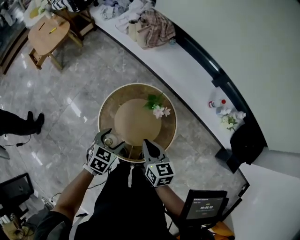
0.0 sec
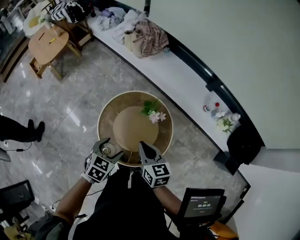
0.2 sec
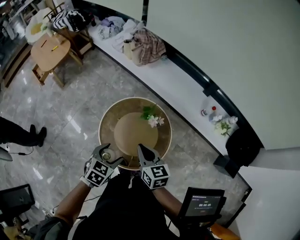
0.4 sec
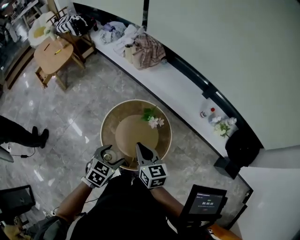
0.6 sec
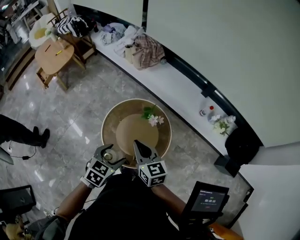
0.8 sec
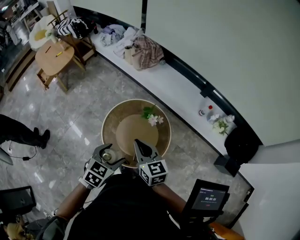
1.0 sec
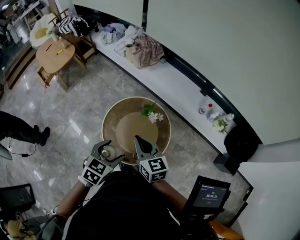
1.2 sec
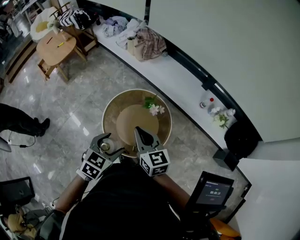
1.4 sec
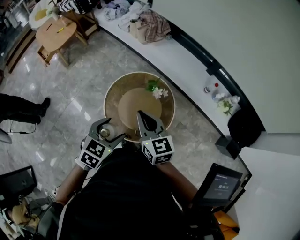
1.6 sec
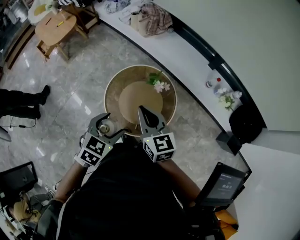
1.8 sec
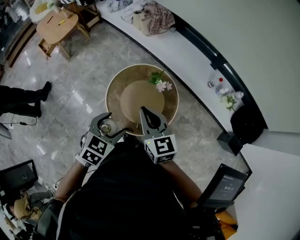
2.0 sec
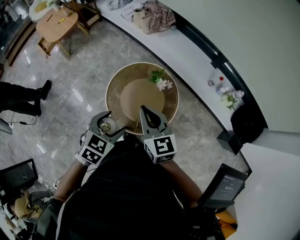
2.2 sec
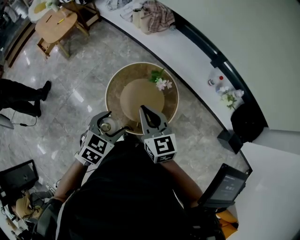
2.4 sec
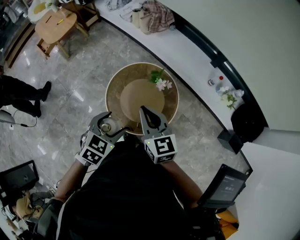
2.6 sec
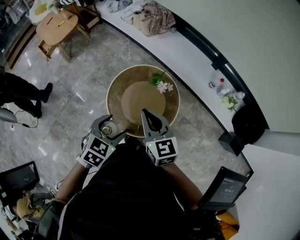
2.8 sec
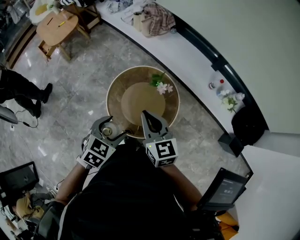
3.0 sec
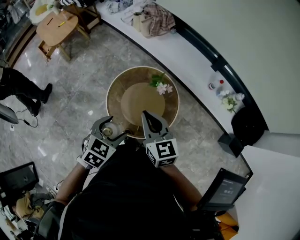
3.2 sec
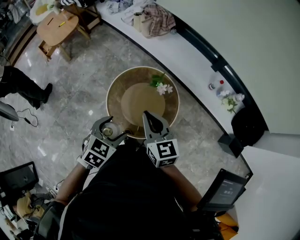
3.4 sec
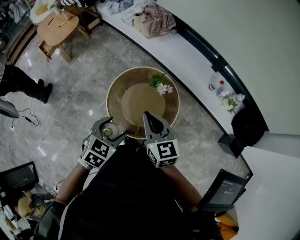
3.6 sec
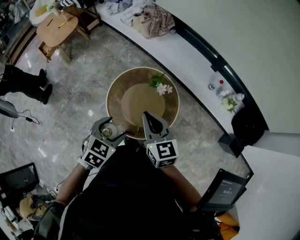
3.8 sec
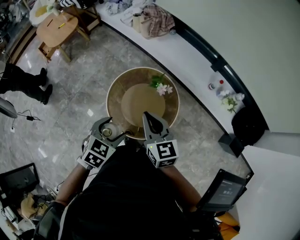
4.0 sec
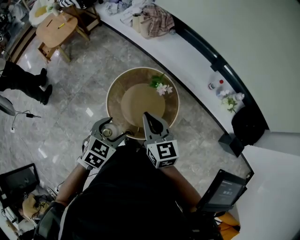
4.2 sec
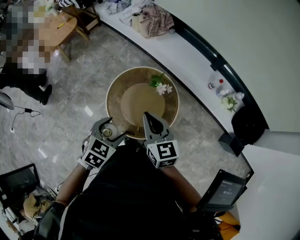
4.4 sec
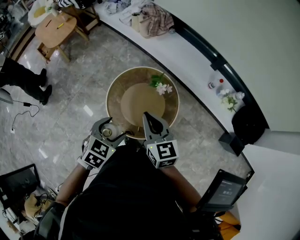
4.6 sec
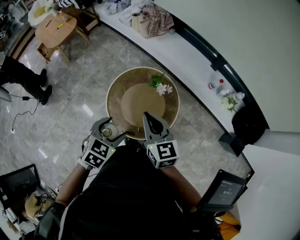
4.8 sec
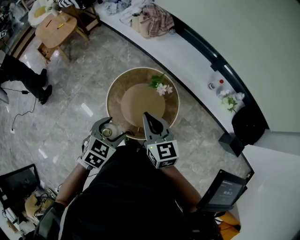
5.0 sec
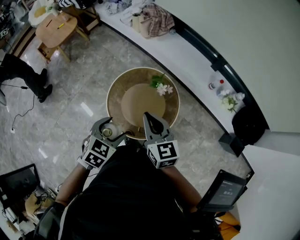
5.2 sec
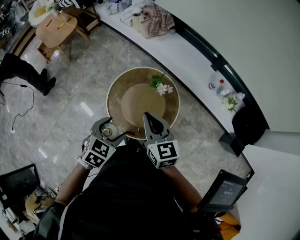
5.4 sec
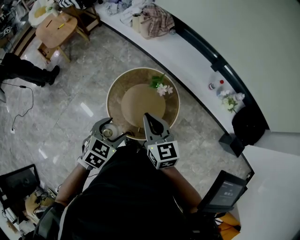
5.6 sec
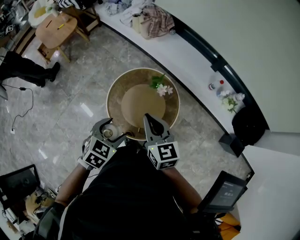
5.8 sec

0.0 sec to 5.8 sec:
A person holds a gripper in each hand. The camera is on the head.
0.0 sec to 1.4 sec: The right gripper heads upward, covering about 15 cm. The left gripper shifts some 20 cm upward and backward.
1.4 sec to 2.8 sec: There are only small adjustments of the grippers.
2.8 sec to 5.8 sec: Both grippers stay about where they are.

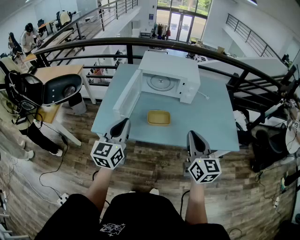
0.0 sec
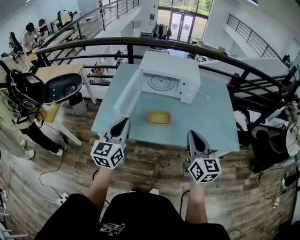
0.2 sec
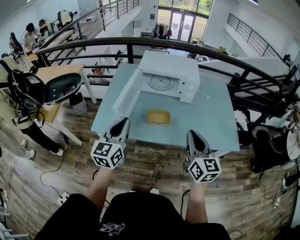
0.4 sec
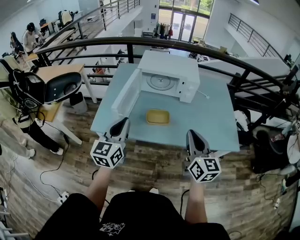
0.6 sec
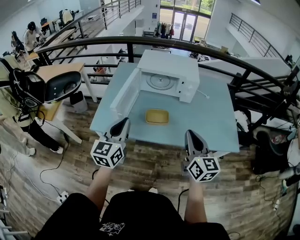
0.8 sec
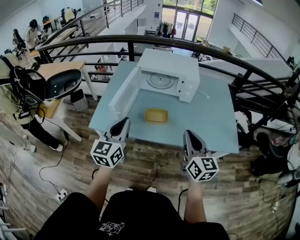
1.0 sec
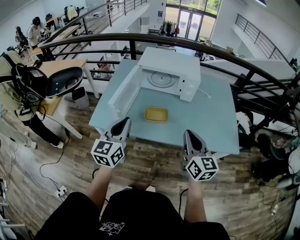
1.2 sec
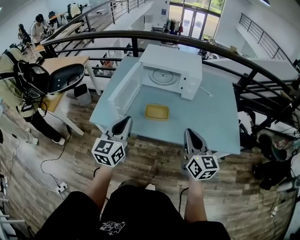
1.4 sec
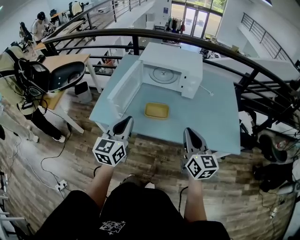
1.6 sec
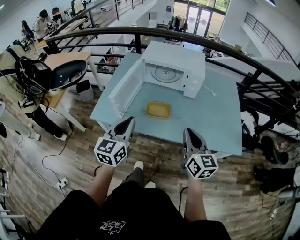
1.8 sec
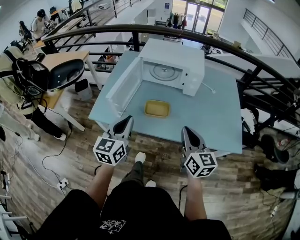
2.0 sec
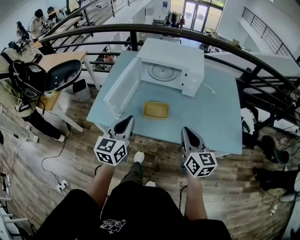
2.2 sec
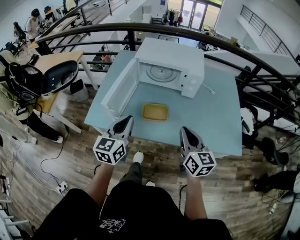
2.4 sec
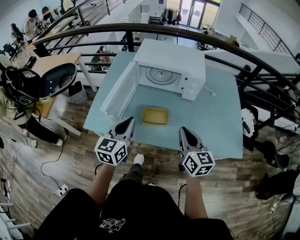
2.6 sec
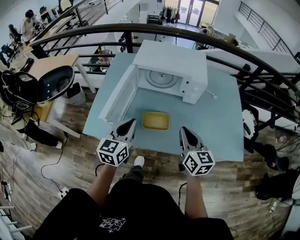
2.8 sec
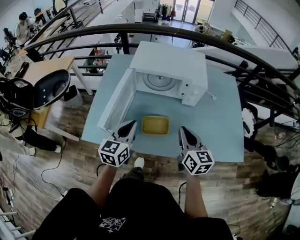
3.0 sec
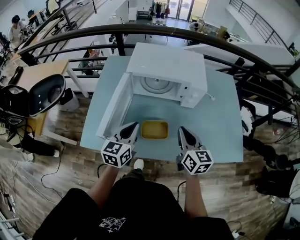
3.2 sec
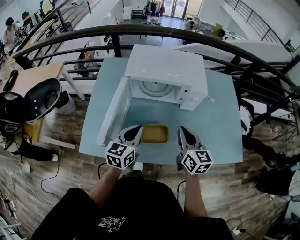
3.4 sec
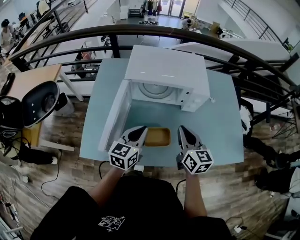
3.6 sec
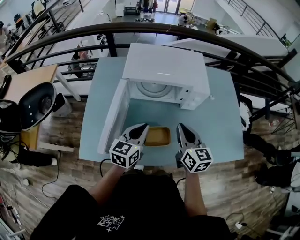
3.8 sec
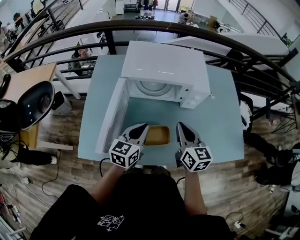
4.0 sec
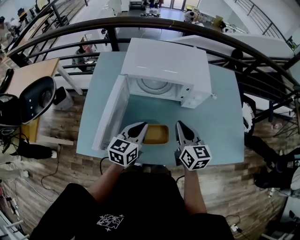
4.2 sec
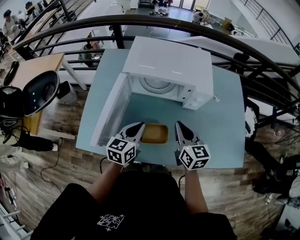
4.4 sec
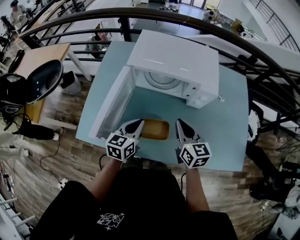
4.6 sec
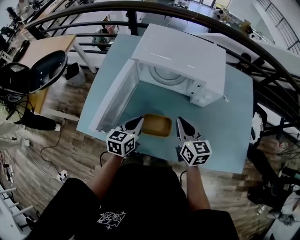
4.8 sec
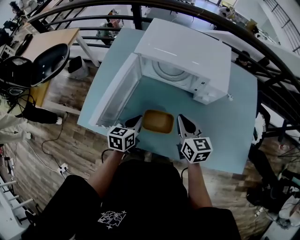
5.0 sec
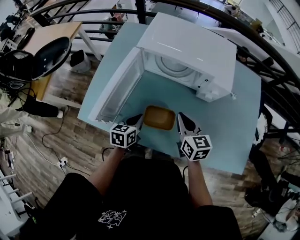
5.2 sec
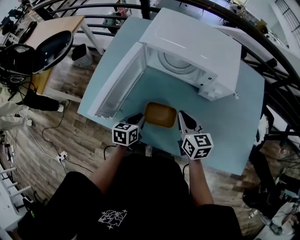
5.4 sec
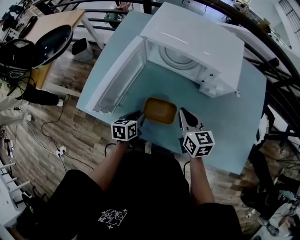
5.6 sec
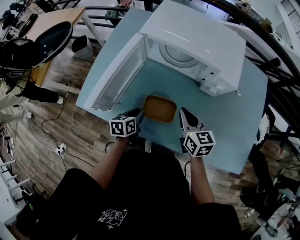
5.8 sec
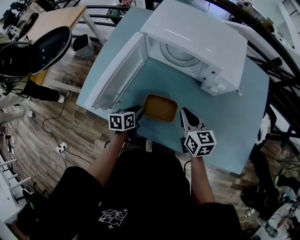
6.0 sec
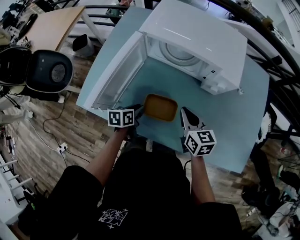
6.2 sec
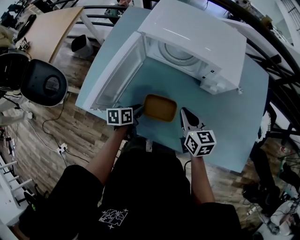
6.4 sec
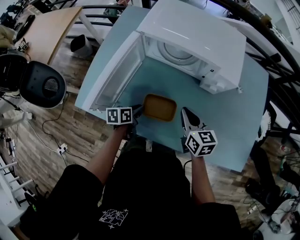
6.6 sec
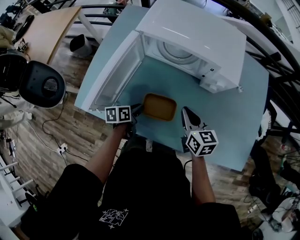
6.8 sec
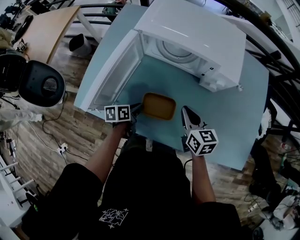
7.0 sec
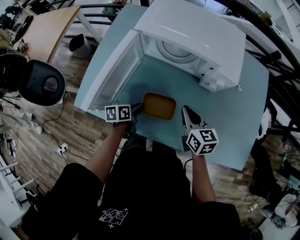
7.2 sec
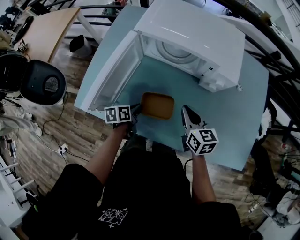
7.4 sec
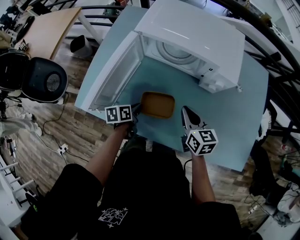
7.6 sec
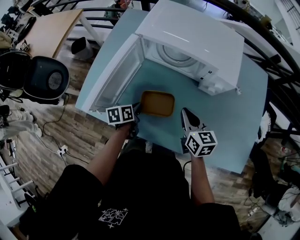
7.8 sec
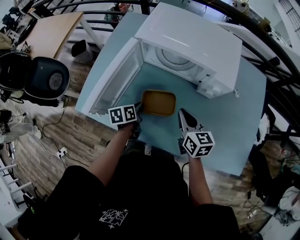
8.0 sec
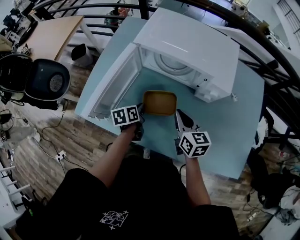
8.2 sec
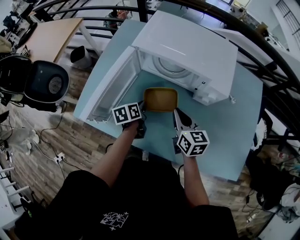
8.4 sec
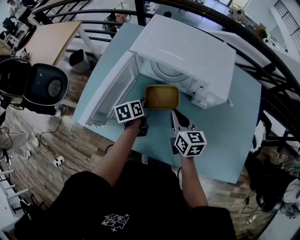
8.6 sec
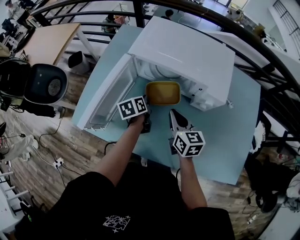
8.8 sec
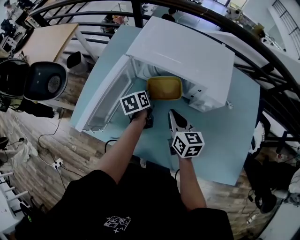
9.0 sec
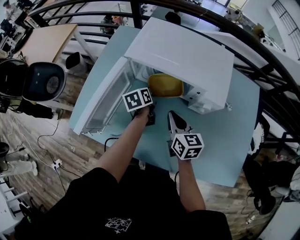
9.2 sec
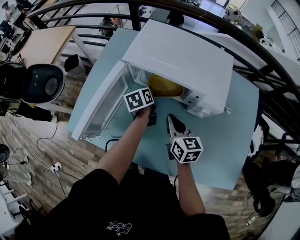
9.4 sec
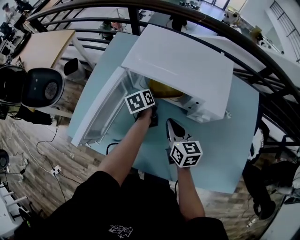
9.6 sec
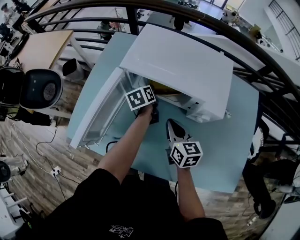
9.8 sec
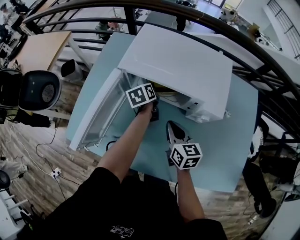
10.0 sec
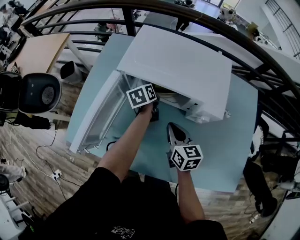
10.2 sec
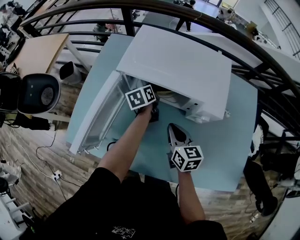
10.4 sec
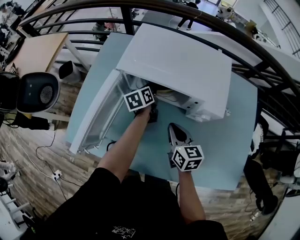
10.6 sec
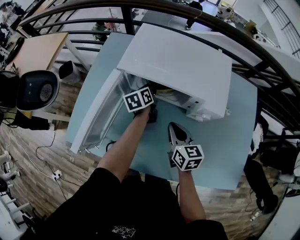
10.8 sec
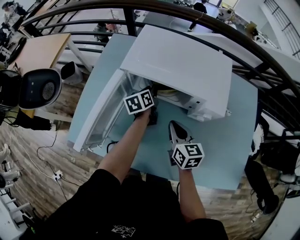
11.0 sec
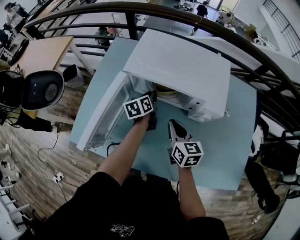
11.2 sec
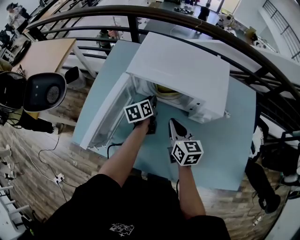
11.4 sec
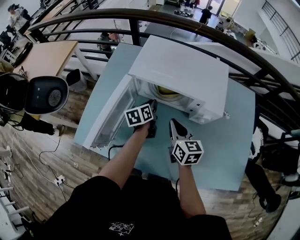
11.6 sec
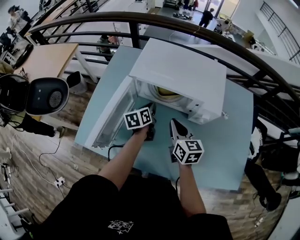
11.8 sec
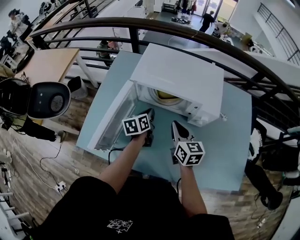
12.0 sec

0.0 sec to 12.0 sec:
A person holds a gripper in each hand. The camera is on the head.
0.0 sec to 1.6 sec: The left gripper heads to the right, covering about 5 cm. The right gripper changes place by roughly 5 cm.
1.6 sec to 3.0 sec: The right gripper heads forward, covering approximately 15 cm. Meanwhile the left gripper is displaced forward and downward by some 20 cm.
3.0 sec to 4.4 sec: The left gripper shifts approximately 10 cm forward and downward; the right gripper travels forward by some 10 cm.
4.4 sec to 6.0 sec: The right gripper shifts about 10 cm downward, and swivels some 20 degrees. The left gripper shifts about 20 cm downward, turns by some 40 degrees, and opens up.
6.0 sec to 7.6 sec: The grippers make only small movements.
7.6 sec to 9.0 sec: The right gripper shifts approximately 5 cm forward; the left gripper shifts about 15 cm forward.
9.0 sec to 10.4 sec: The left gripper travels forward and to the right by approximately 10 cm.
10.4 sec to 12.0 sec: The right gripper is displaced upward by about 5 cm. Meanwhile the left gripper goes roughly 10 cm backward.

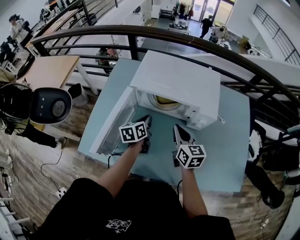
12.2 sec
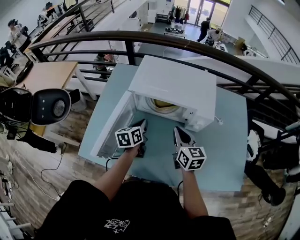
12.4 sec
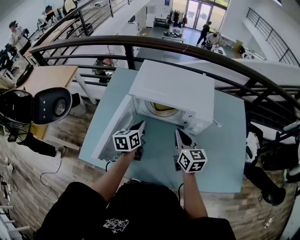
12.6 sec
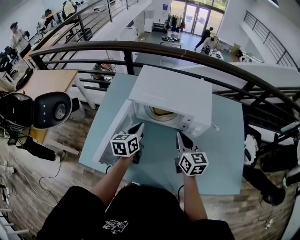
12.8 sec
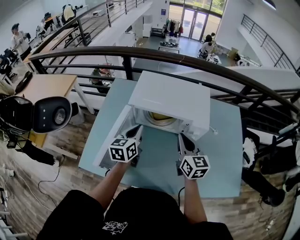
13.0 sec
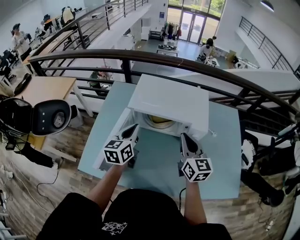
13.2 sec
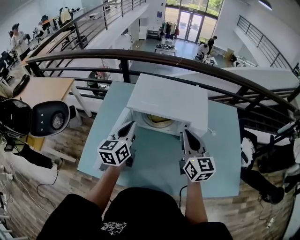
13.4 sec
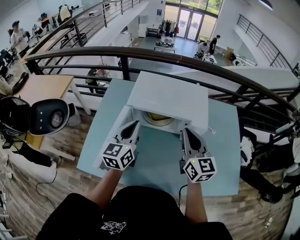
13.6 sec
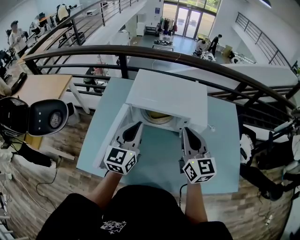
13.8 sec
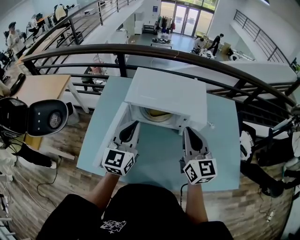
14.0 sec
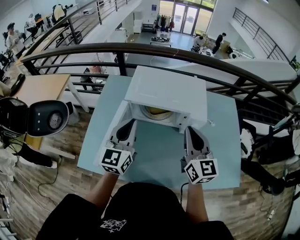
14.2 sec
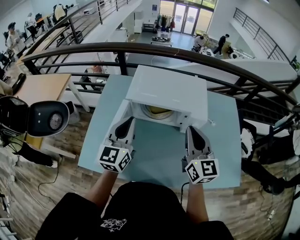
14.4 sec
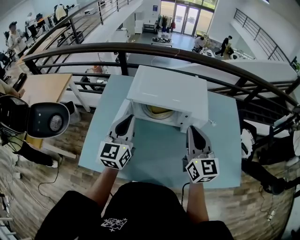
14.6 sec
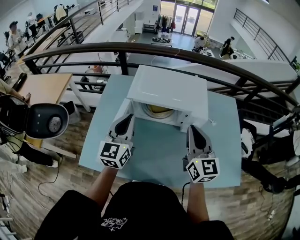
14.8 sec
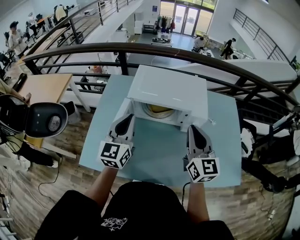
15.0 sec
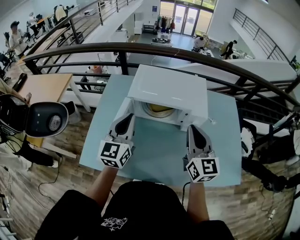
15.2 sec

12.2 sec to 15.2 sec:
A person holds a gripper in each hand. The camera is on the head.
12.2 sec to 13.8 sec: Both grippers move upward, approximately 20 cm. The right gripper turns by some 20 degrees. The left gripper swivels roughly 40 degrees.
13.8 sec to 15.2 sec: There are only small adjustments of the grippers.

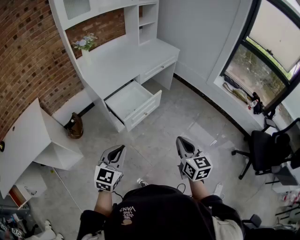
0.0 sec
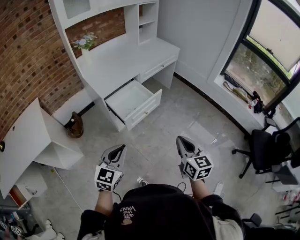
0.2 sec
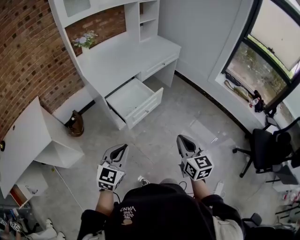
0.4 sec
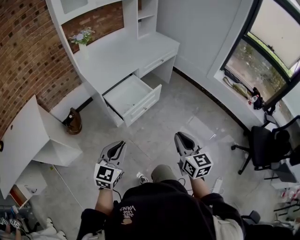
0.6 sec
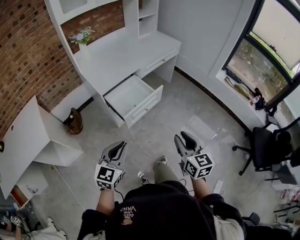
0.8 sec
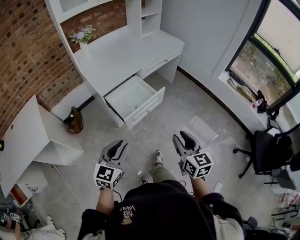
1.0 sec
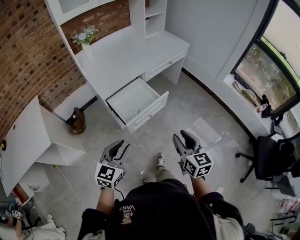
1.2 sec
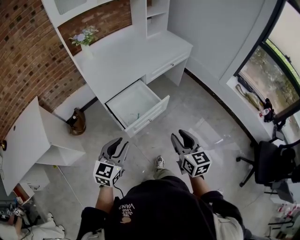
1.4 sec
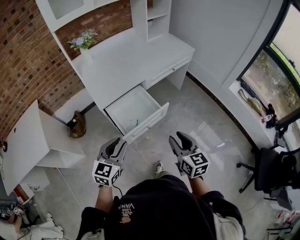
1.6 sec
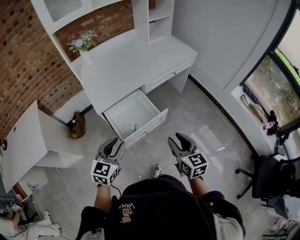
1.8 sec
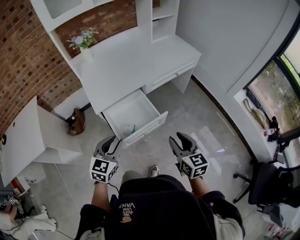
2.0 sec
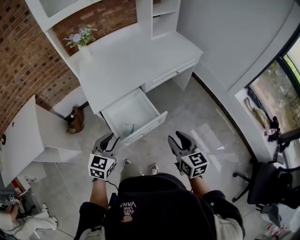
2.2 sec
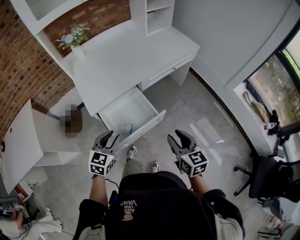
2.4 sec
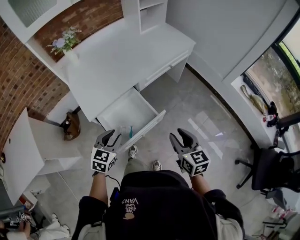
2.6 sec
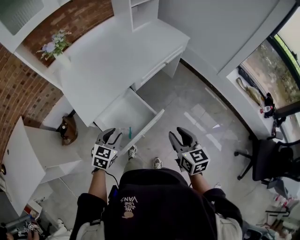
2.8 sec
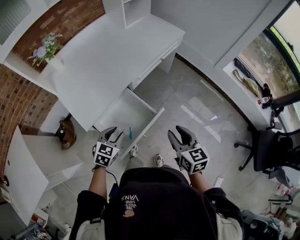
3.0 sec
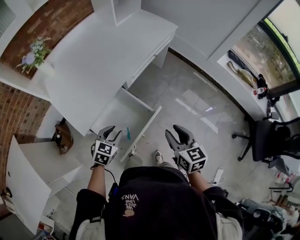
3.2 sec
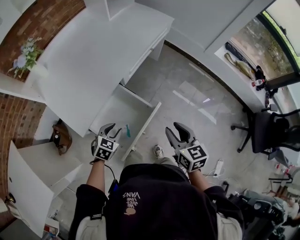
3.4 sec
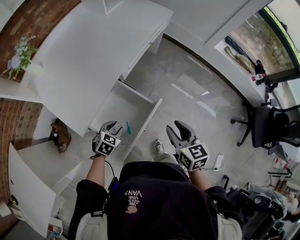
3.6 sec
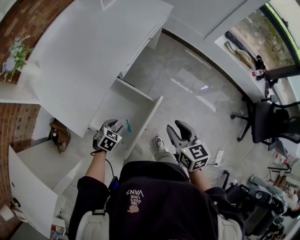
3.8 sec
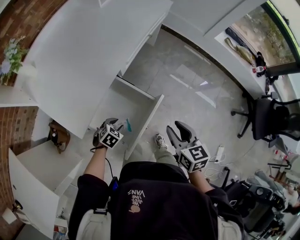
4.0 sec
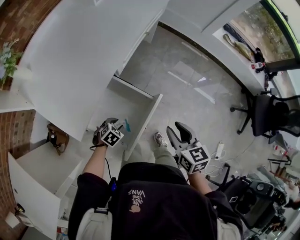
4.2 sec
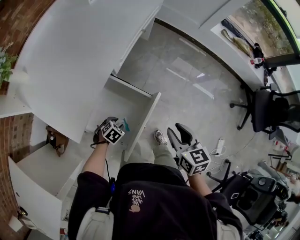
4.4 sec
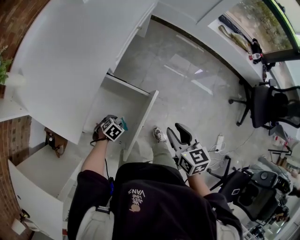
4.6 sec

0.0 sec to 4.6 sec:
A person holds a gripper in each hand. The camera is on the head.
0.0 sec to 1.6 sec: Both grippers move forward, some 20 cm. The right gripper opens its fingers; the left gripper opens up.
1.6 sec to 3.0 sec: The right gripper moves forward, about 15 cm. The left gripper travels forward and downward by roughly 25 cm, and changes its angle by approximately 30 degrees.
3.0 sec to 4.6 sec: The right gripper moves downward, about 10 cm, and changes its angle by about 20 degrees. The left gripper goes roughly 25 cm downward, and turns by about 50 degrees.
